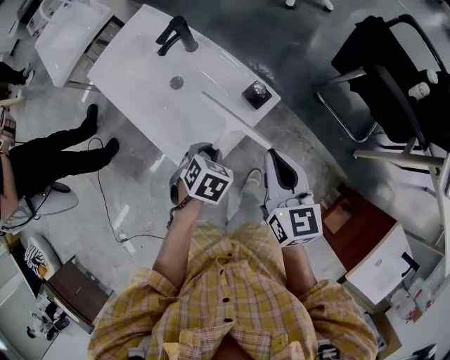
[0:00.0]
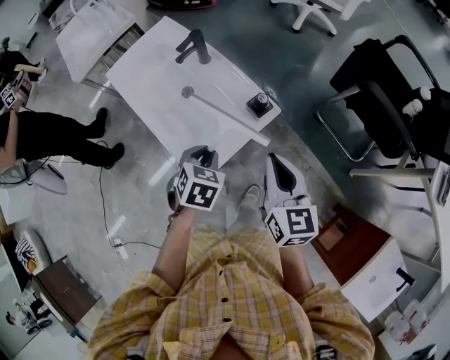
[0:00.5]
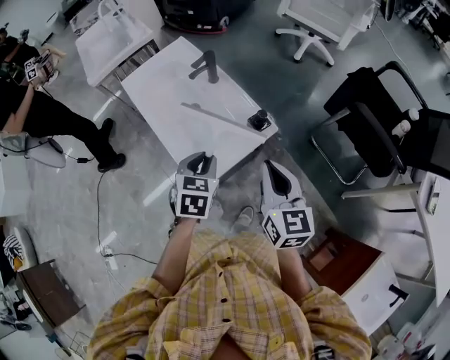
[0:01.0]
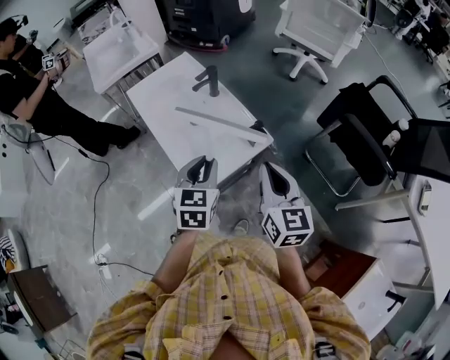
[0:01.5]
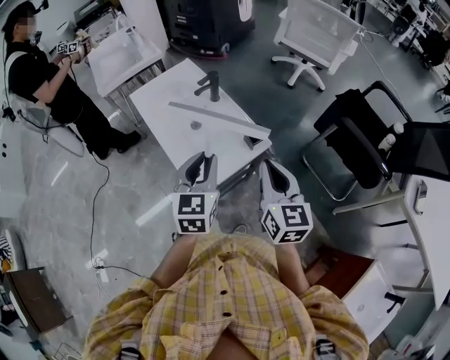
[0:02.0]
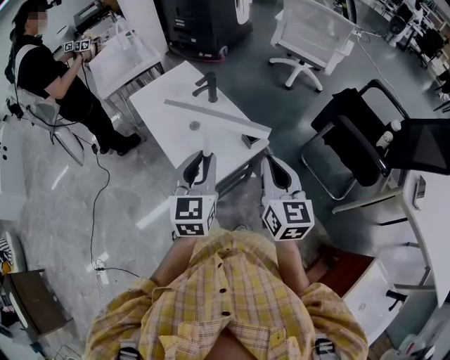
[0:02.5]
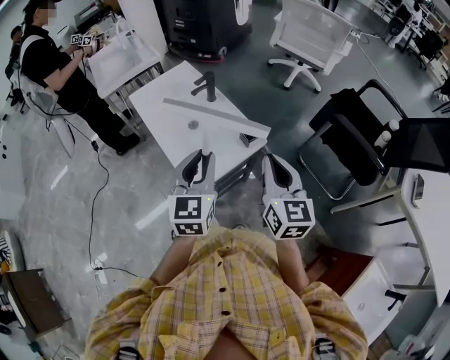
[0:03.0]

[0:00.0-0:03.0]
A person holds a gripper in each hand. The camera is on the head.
0:00.0 to 0:01.5: The left gripper is displaced upward by roughly 20 cm, and angles its fingers upward, by roughly 40 degrees, while the right gripper moves upward, some 10 cm.
0:01.5 to 0:03.0: The left gripper moves upward, roughly 10 cm.

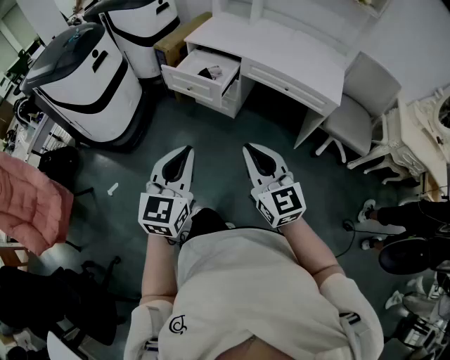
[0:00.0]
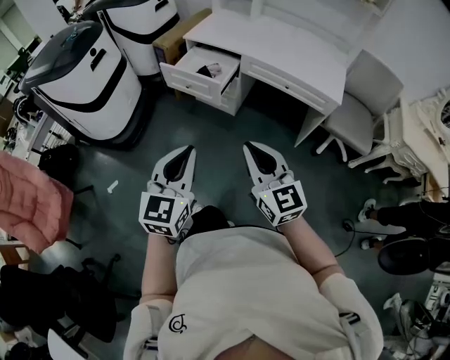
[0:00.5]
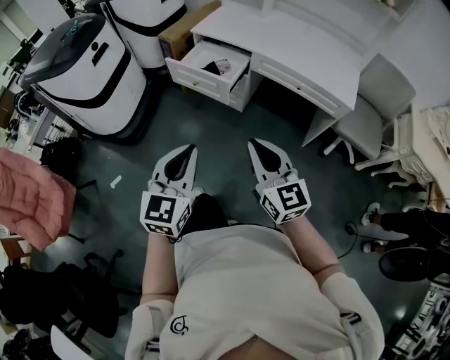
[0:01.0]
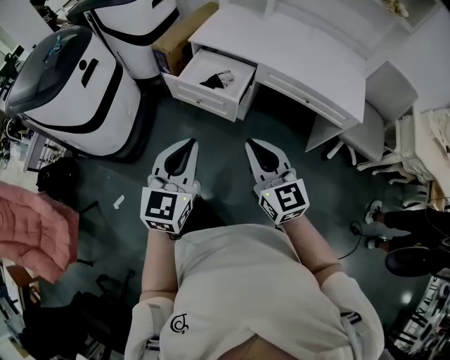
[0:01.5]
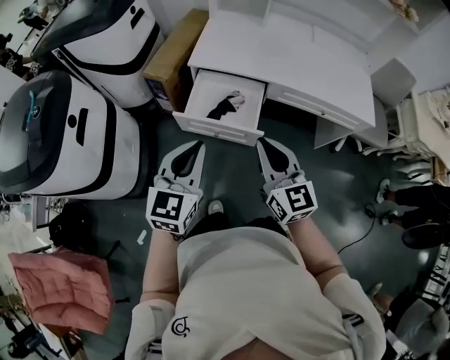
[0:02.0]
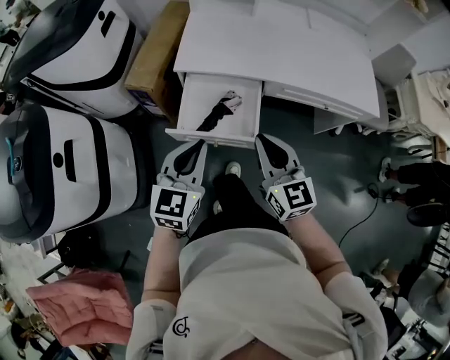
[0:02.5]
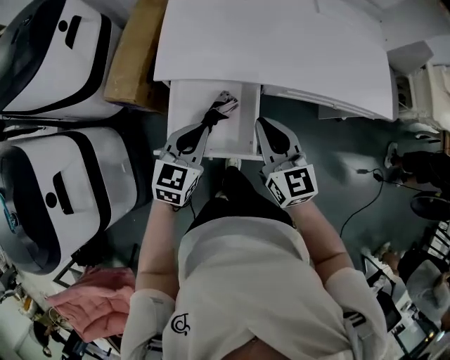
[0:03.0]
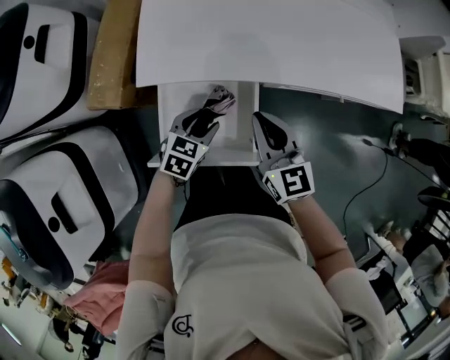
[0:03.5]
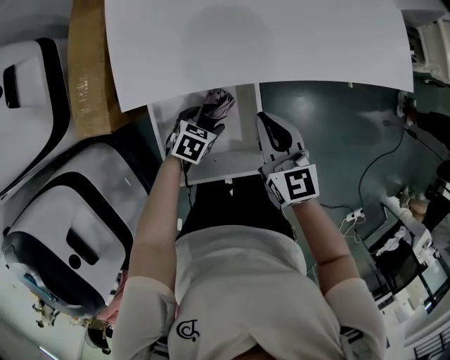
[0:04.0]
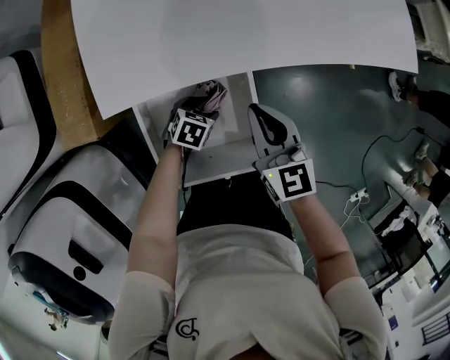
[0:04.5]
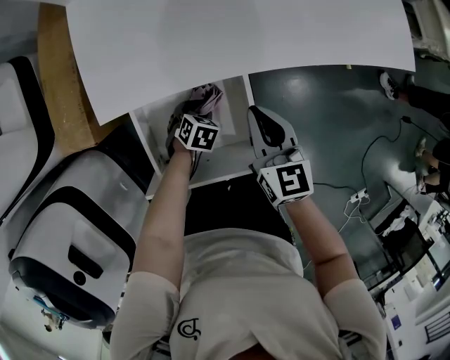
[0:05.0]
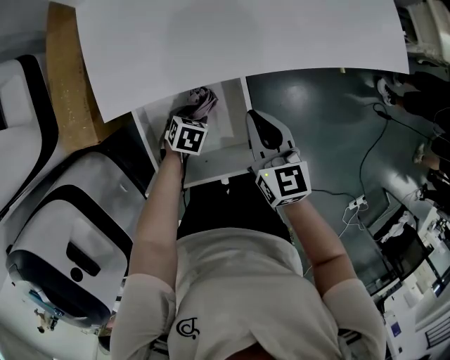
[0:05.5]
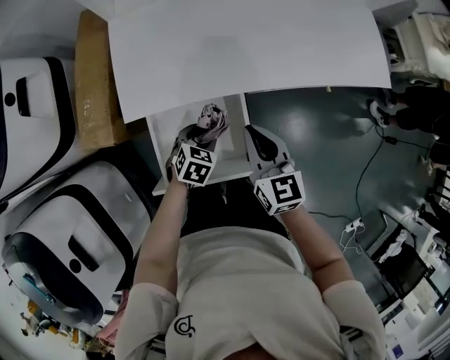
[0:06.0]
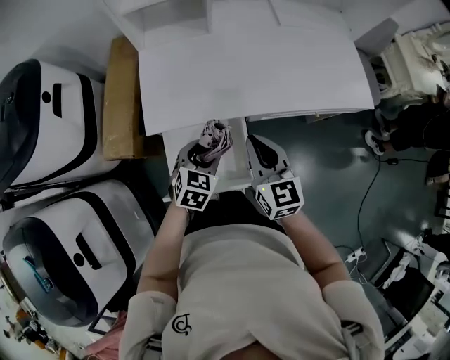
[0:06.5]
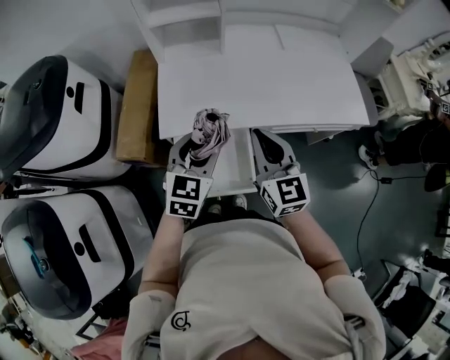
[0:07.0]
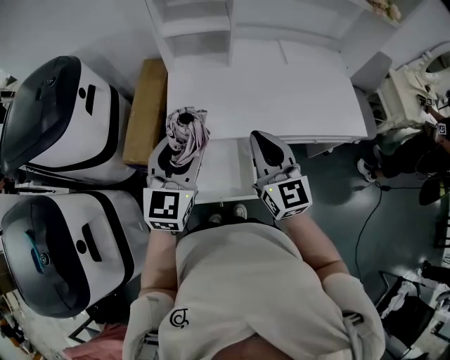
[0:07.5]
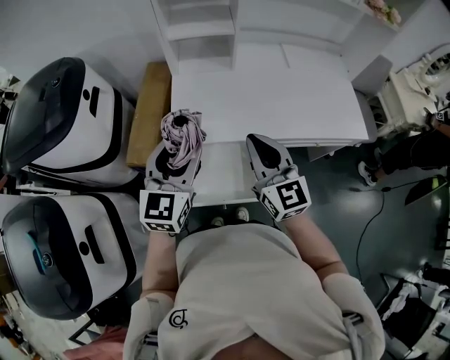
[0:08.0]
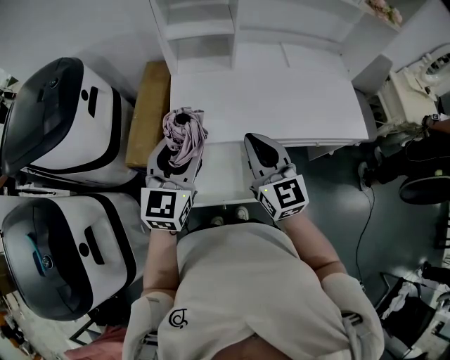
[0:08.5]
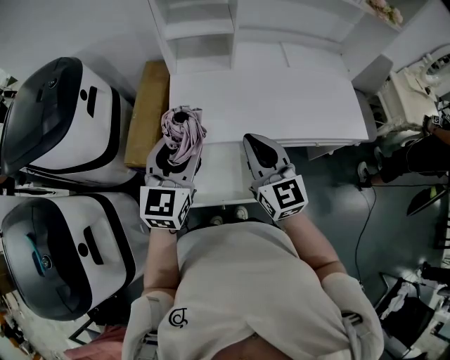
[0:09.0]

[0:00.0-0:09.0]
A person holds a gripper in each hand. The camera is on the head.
0:00.0 to 0:02.0: The pair of grippers is taken forward, about 40 cm.
0:02.0 to 0:04.5: The left gripper travels downward by about 50 cm, tips its fingers downward by approximately 50 degrees, and opens its fingers; the right gripper ends up roughly 40 cm from where it was, and swivels roughly 30 degrees.
0:04.5 to 0:07.0: The right gripper travels upward by approximately 25 cm; the left gripper heads upward, covering roughly 40 cm, points its fingers some 40 degrees further upward, and closes up.
0:07.0 to 0:09.0: The right gripper moves to the left, approximately 5 cm. The left gripper moves upward and to the left, roughly 10 cm.

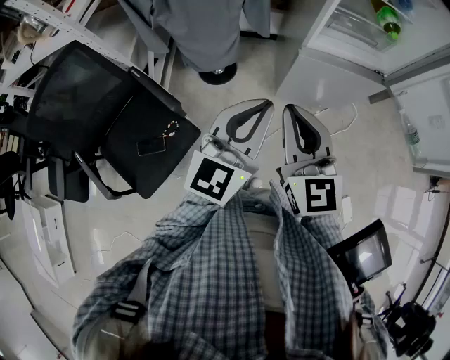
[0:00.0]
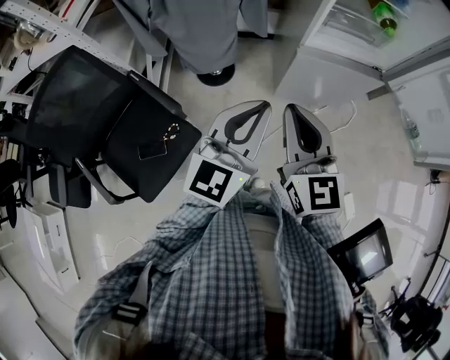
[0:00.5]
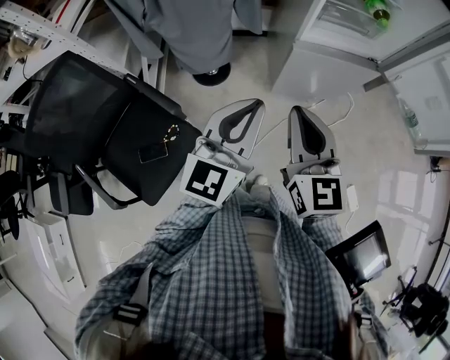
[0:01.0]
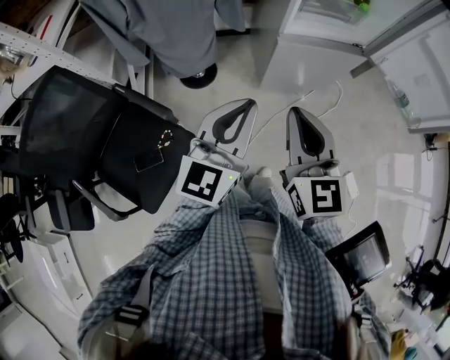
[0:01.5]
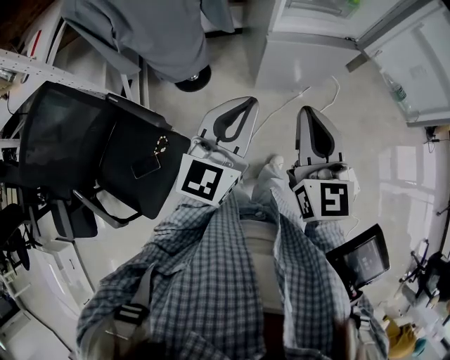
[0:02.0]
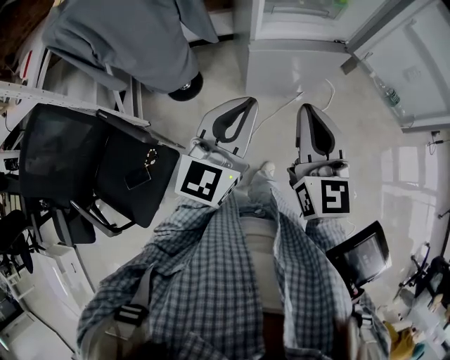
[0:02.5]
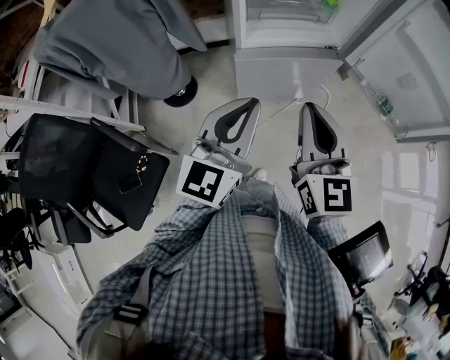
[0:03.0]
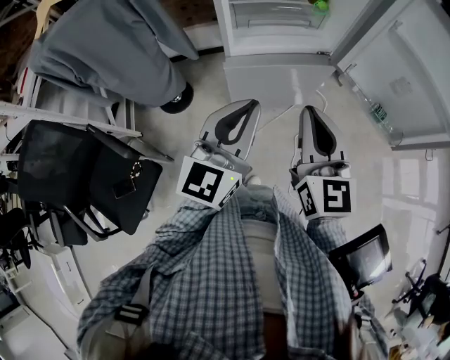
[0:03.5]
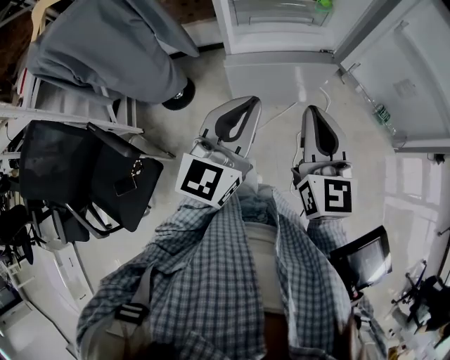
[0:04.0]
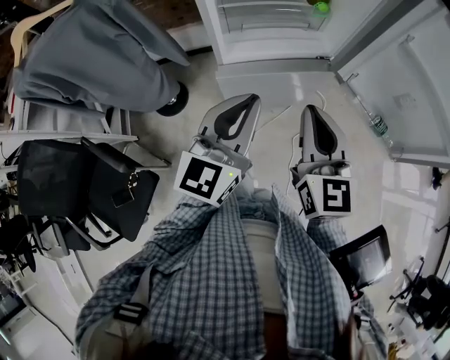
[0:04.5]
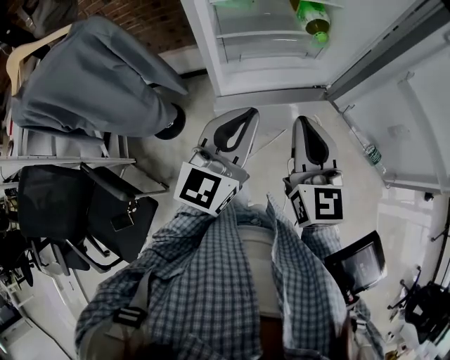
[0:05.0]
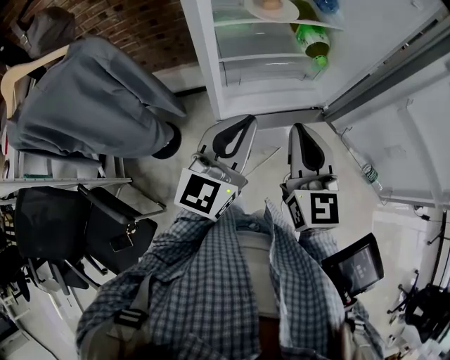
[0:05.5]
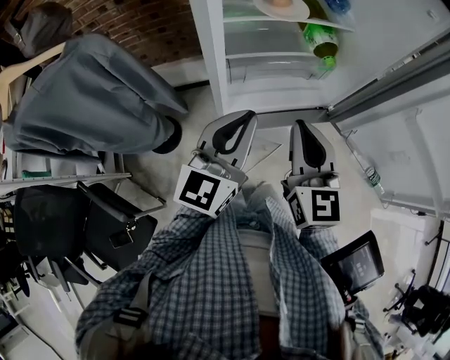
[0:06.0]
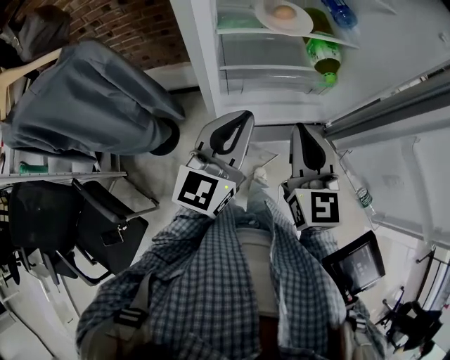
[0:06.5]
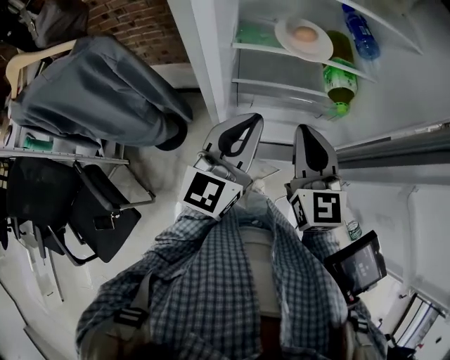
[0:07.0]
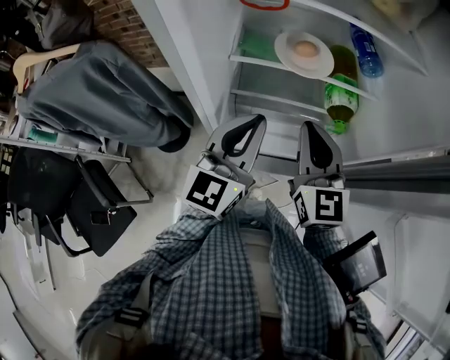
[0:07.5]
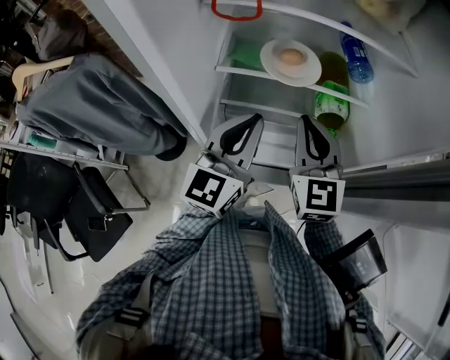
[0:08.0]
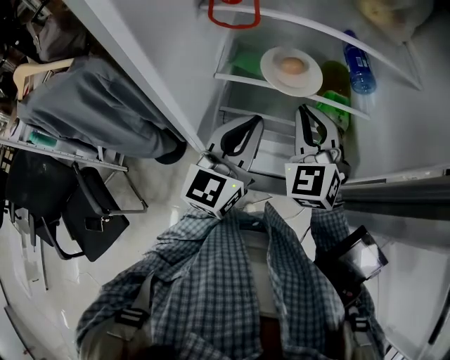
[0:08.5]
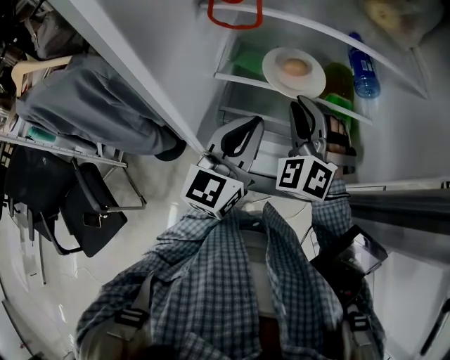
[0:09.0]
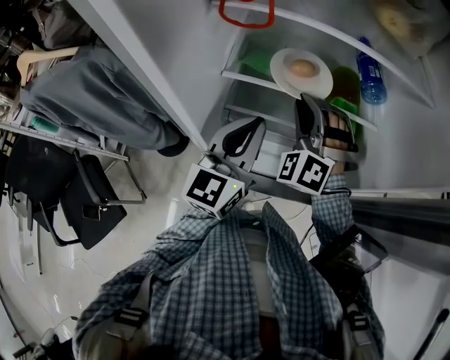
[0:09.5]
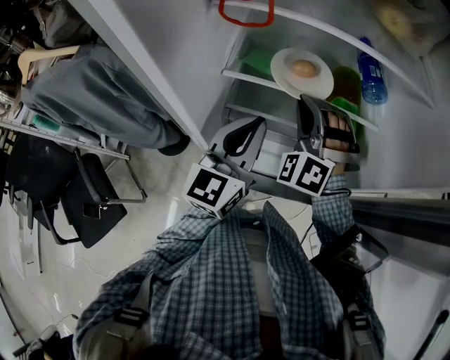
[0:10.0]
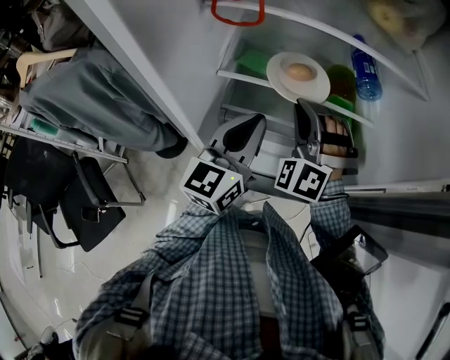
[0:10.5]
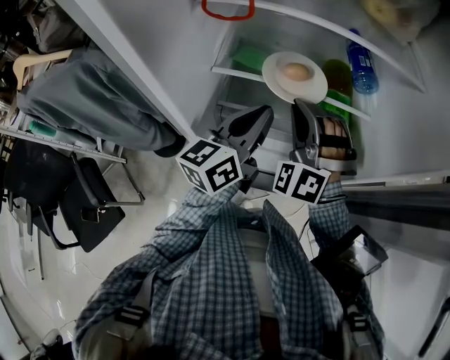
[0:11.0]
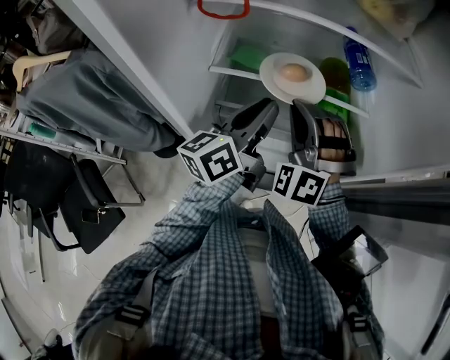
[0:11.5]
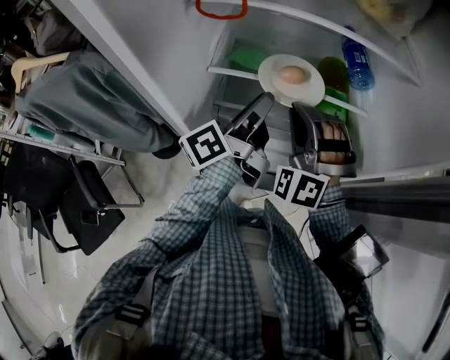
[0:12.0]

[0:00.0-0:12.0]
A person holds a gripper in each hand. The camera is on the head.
0:00.0 to 0:02.0: The right gripper shifts some 5 cm to the right.
0:02.0 to 0:04.0: Both grippers travel together to the right and forward, approximately 25 cm.
0:04.0 to 0:06.0: The two grippers go some 20 cm forward.
0:06.0 to 0:08.0: Both grippers travel together forward, roughly 20 cm. The right gripper changes its angle by some 20 degrees.
0:08.0 to 0:10.0: The right gripper goes about 10 cm forward, and twists approximately 60 degrees counterclockwise, seen from behind.
0:10.0 to 0:12.0: The left gripper goes about 5 cm forward, and rotates around the line of its fingers by roughly 60 degrees, counterclockwise from behind.

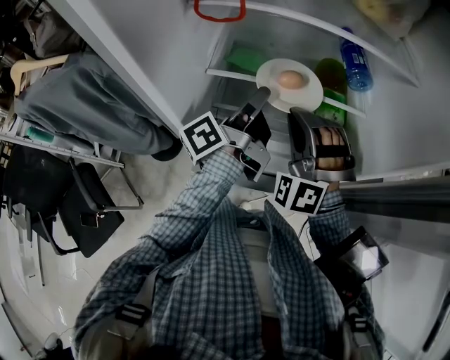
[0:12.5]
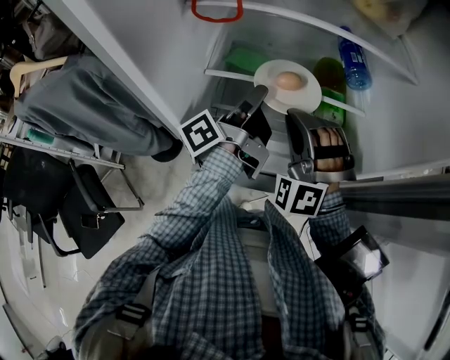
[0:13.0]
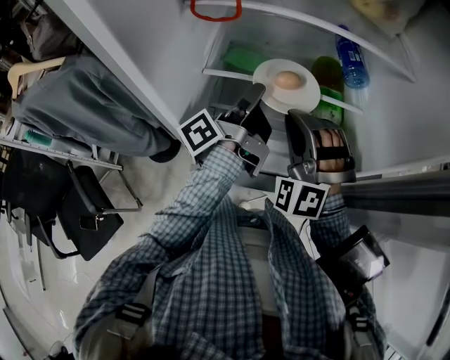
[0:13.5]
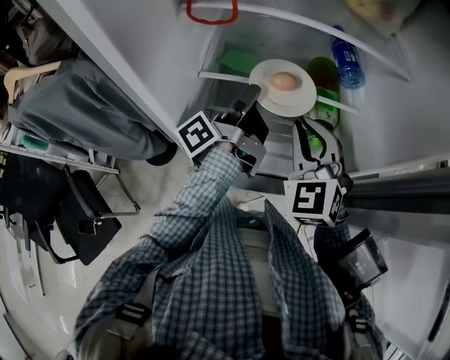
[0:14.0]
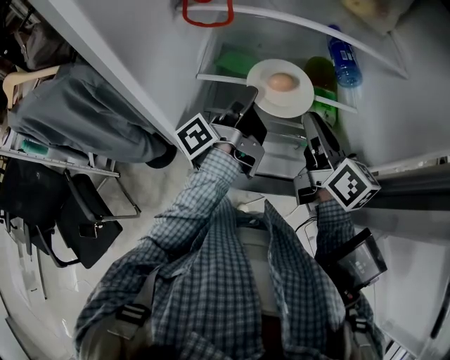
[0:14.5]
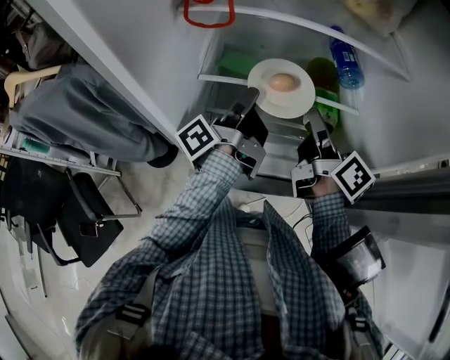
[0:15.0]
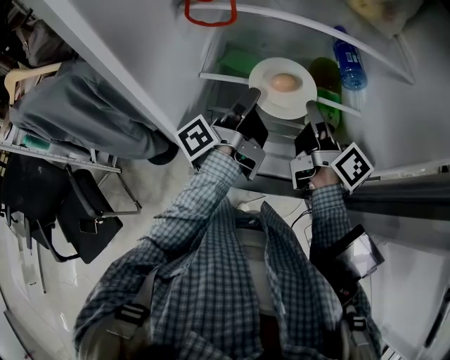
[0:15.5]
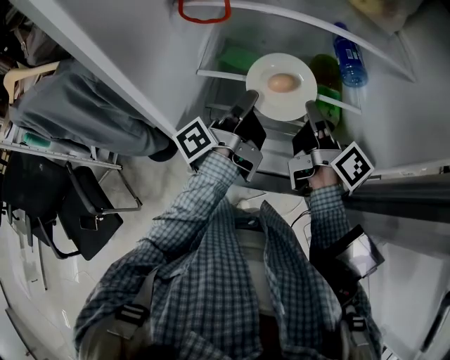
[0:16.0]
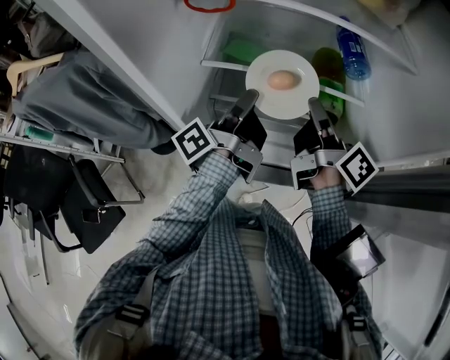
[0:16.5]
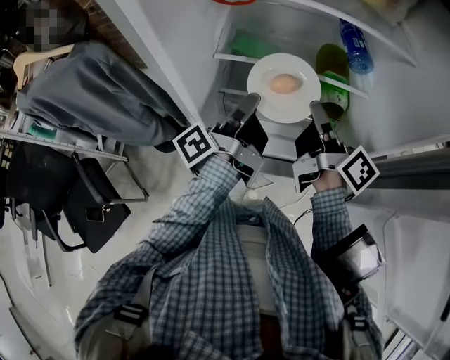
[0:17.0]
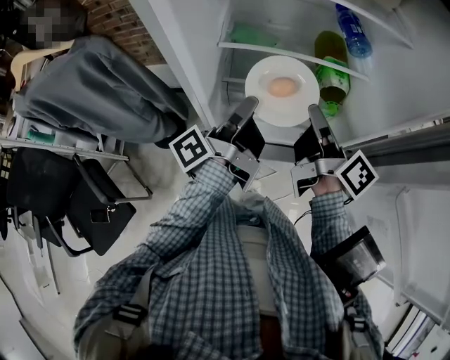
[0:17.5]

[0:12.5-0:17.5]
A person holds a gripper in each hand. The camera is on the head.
0:12.5 to 0:15.0: The right gripper goes about 10 cm to the right, and rotates around the line of its fingers by some 140 degrees, clockwise from behind.
0:15.0 to 0:17.5: The right gripper travels backward and to the left by about 10 cm. The left gripper is displaced backward by some 10 cm.
